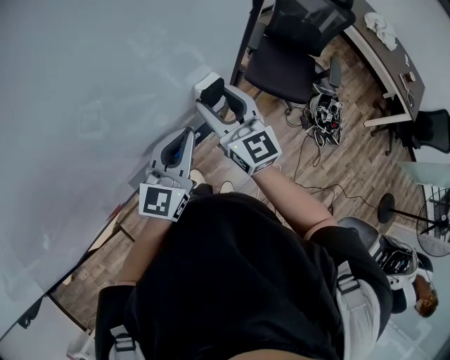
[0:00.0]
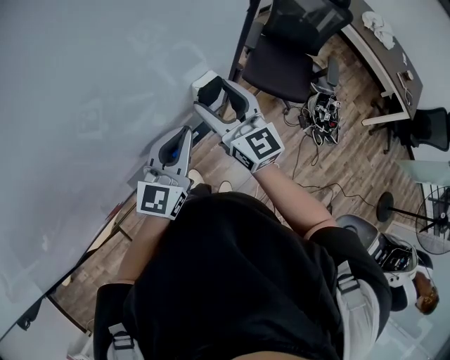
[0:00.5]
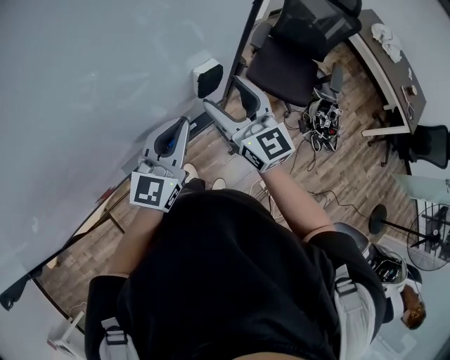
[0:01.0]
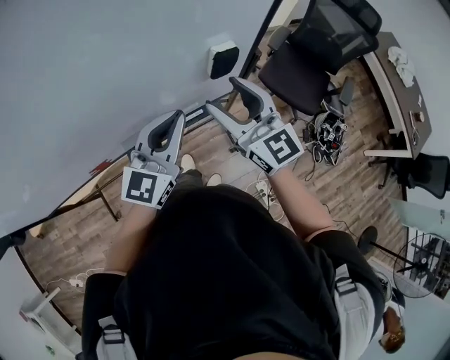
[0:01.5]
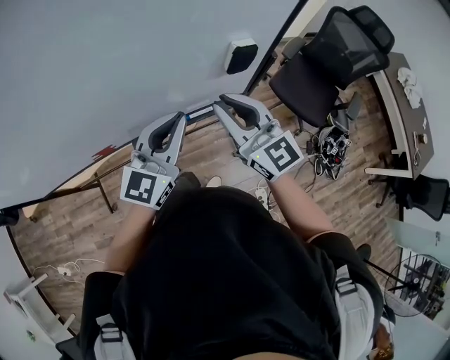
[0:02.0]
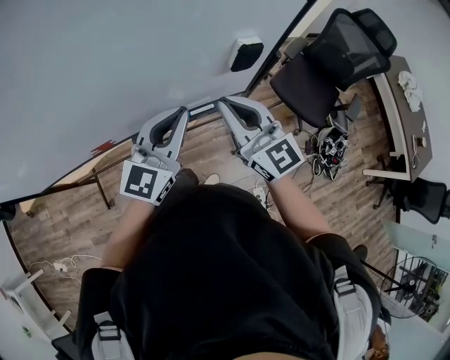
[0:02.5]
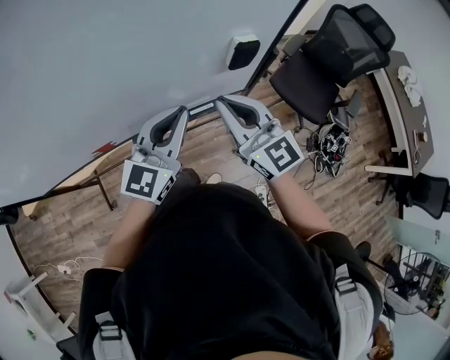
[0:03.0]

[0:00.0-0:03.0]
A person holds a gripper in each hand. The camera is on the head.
0.0 to 1.5 s: The grippers both shift backward by approximately 10 cm.
1.5 to 3.0 s: The right gripper shifts by about 5 cm, and closes its fingers.

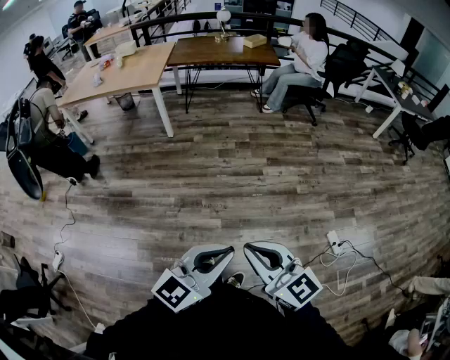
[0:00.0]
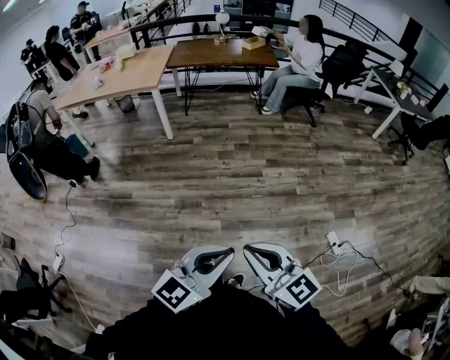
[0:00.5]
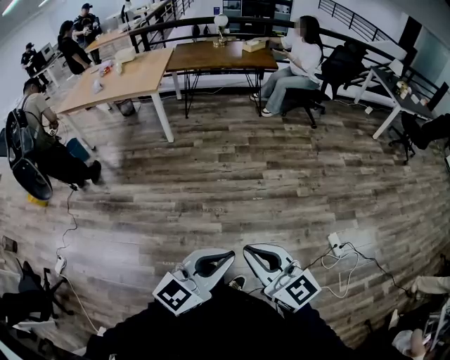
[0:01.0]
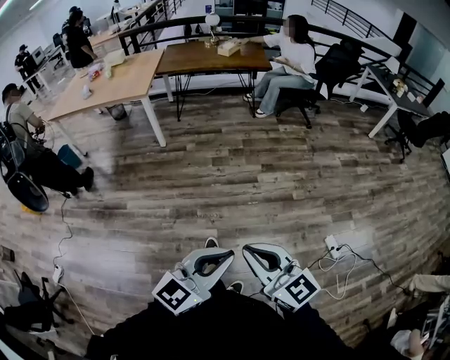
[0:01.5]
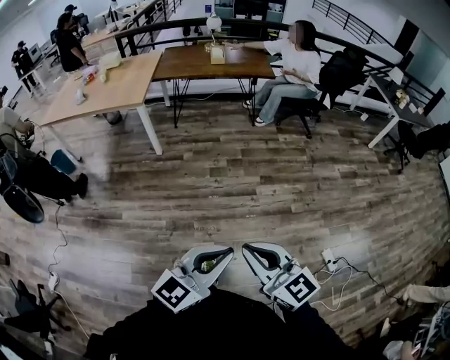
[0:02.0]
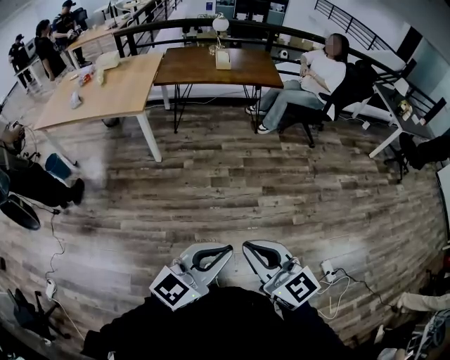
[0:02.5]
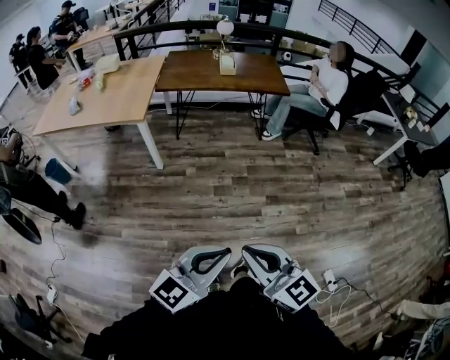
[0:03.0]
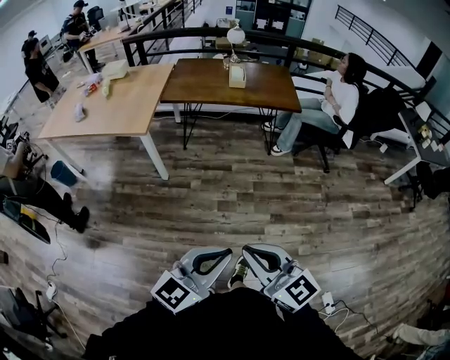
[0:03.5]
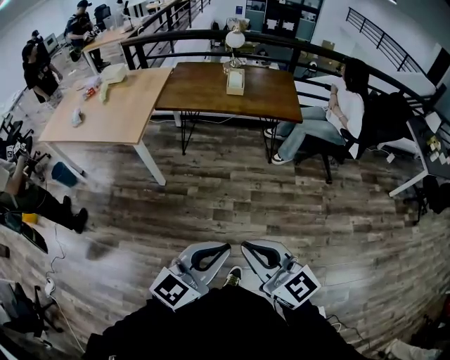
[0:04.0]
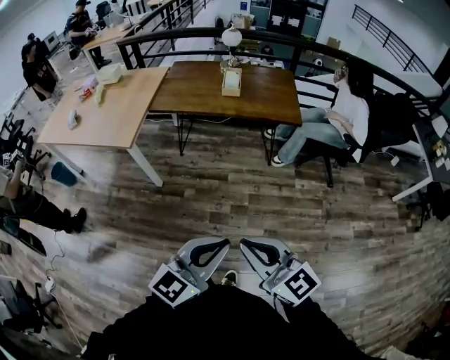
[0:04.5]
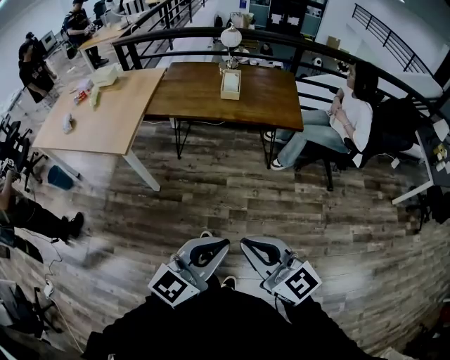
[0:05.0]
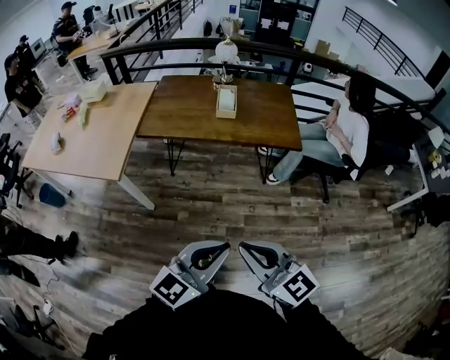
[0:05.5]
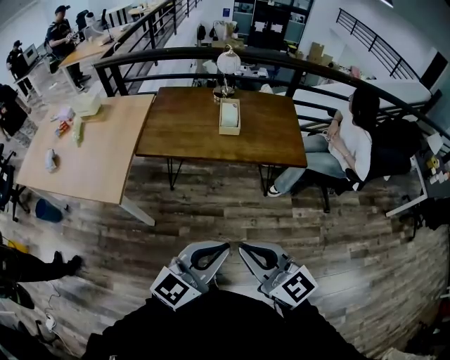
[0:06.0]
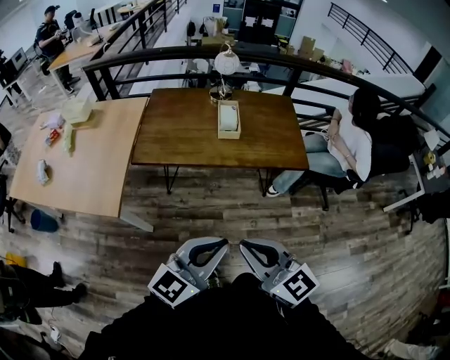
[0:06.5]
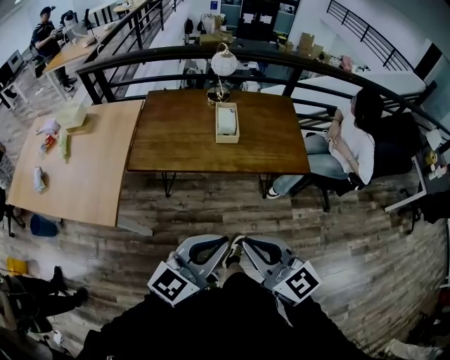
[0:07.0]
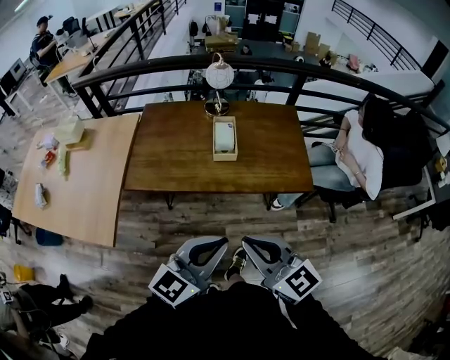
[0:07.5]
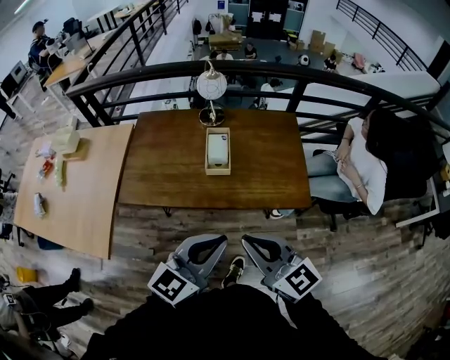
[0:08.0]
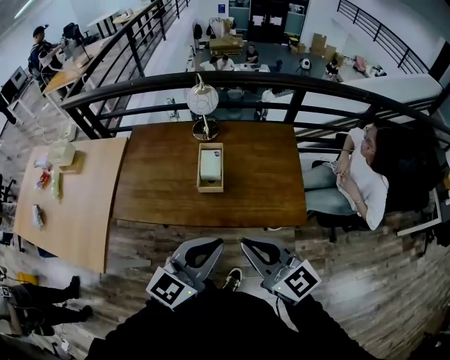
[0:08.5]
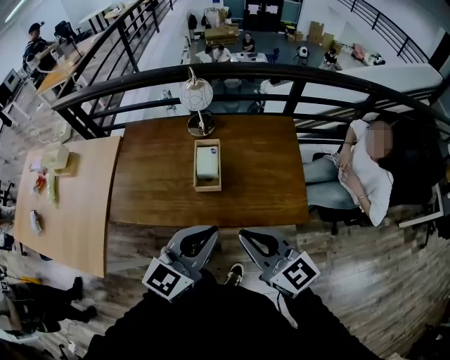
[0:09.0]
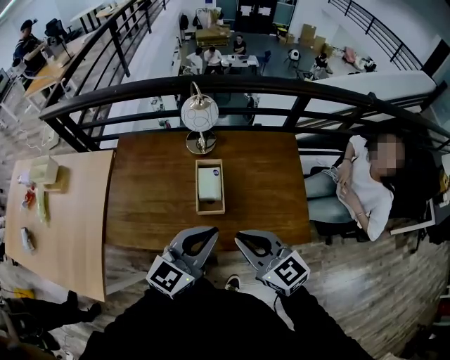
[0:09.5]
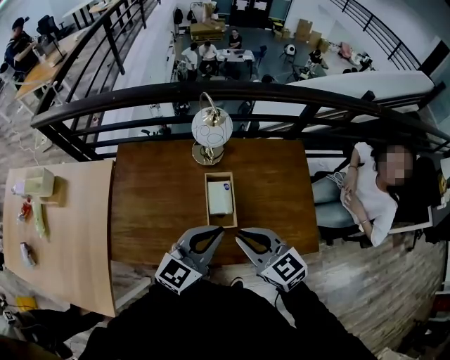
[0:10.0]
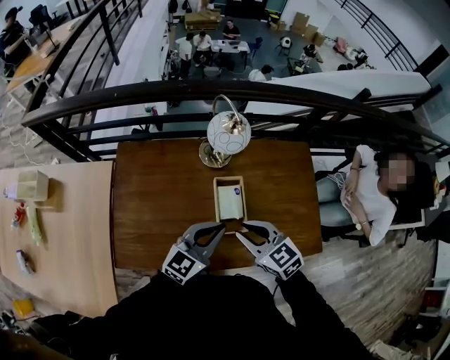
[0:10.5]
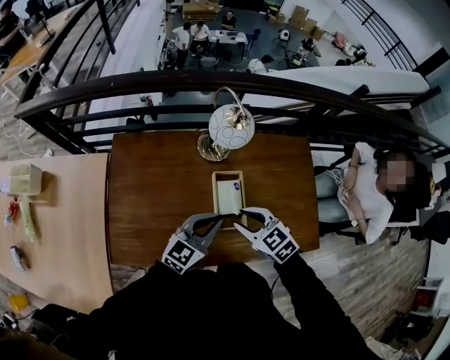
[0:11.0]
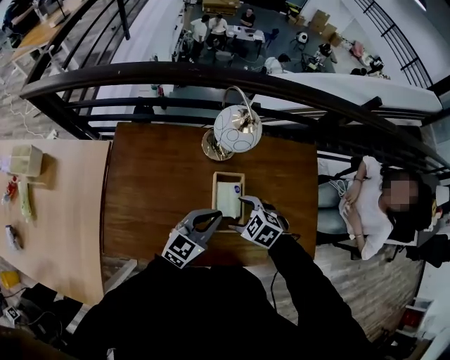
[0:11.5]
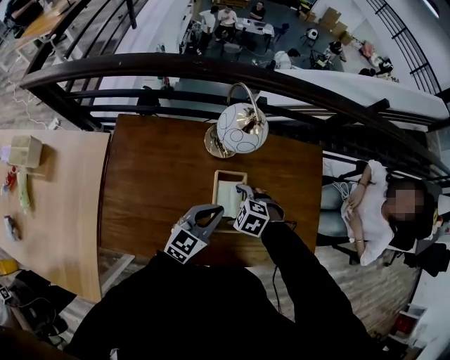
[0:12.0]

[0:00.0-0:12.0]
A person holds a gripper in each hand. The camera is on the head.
0.0 to 2.0 s: Both grippers travel together forward, about 20 cm.
2.0 to 4.0 s: Both grippers are carried forward, some 40 cm.
4.0 to 6.0 s: Both grippers move forward, roughly 35 cm.
6.0 to 8.0 s: Both grippers move forward, about 30 cm.
8.0 to 10.0 s: Both grippers travel together forward, about 30 cm.
10.0 to 12.0 s: The two grippers go some 25 cm downward and forward. The right gripper angles its fingers downward, by some 50 degrees, and opens.

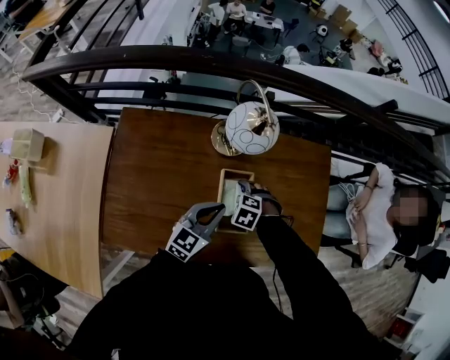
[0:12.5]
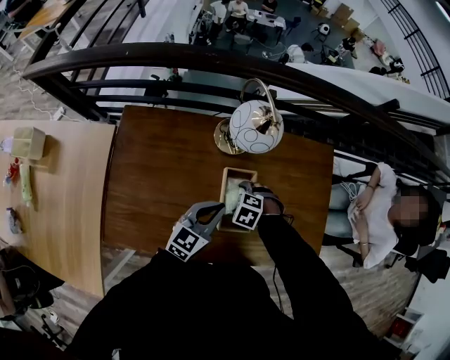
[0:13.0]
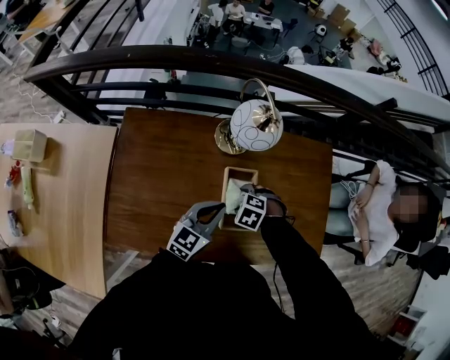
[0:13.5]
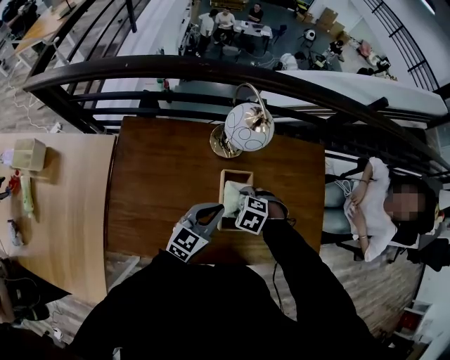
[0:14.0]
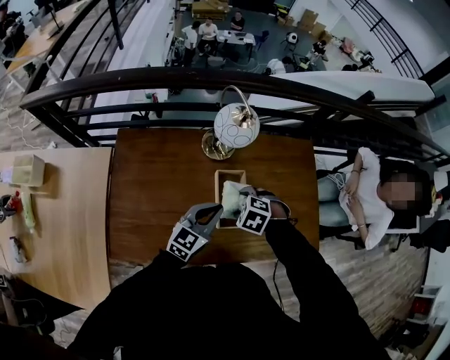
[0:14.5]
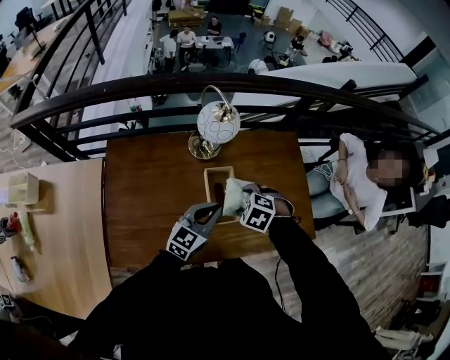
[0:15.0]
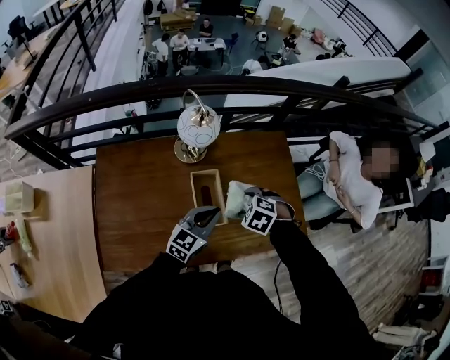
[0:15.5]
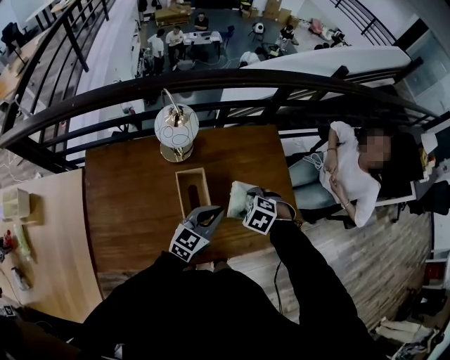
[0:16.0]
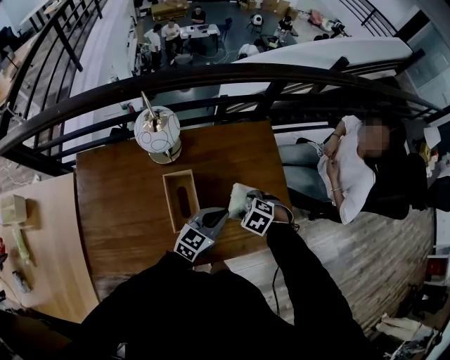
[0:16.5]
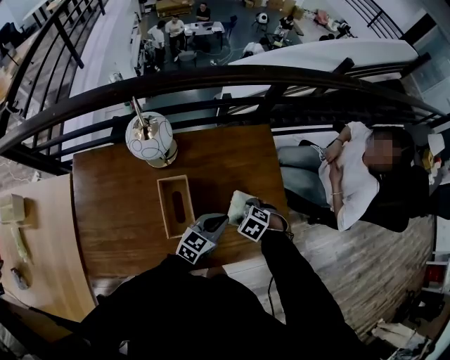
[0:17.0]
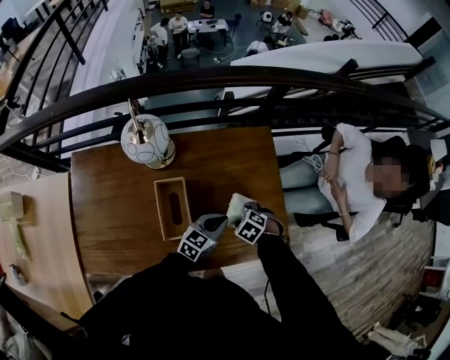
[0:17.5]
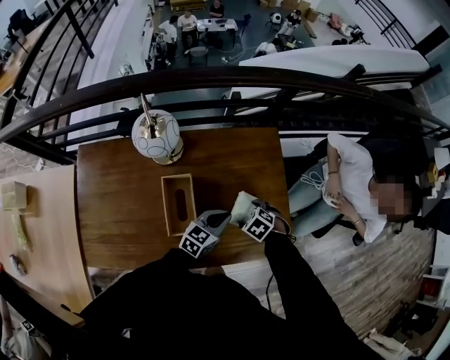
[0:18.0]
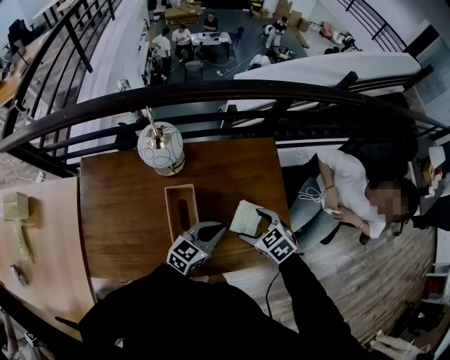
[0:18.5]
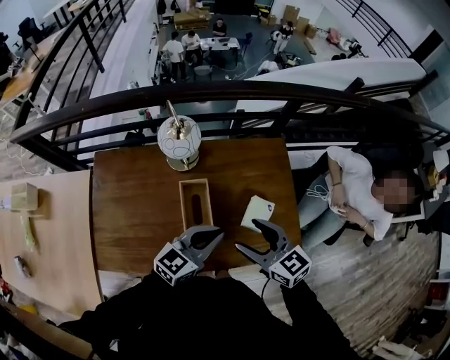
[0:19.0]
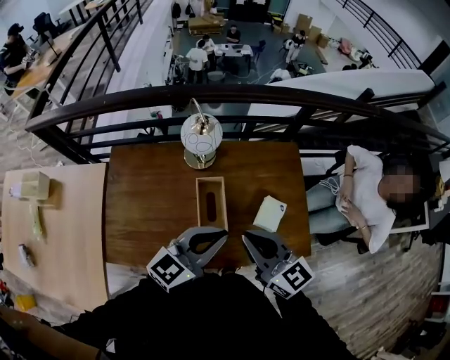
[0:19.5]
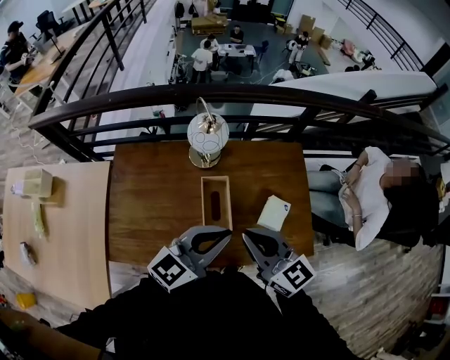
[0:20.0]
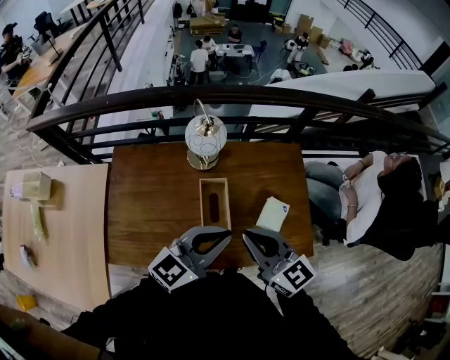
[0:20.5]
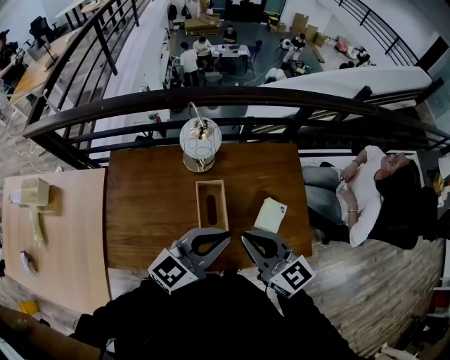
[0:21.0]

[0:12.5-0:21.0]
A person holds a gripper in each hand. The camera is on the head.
12.5 to 14.5 s: The right gripper travels upward by some 10 cm, and closes up.
14.5 to 16.5 s: The right gripper shifts by some 20 cm, while the left gripper shifts by about 20 cm.
16.5 to 19.0 s: The right gripper is displaced upward by roughly 20 cm, and points its fingers approximately 60 degrees further upward; the left gripper travels upward by approximately 10 cm.
19.0 to 21.0 s: The left gripper is displaced upward by some 10 cm; the right gripper goes some 10 cm upward and to the left, and closes its fingers.

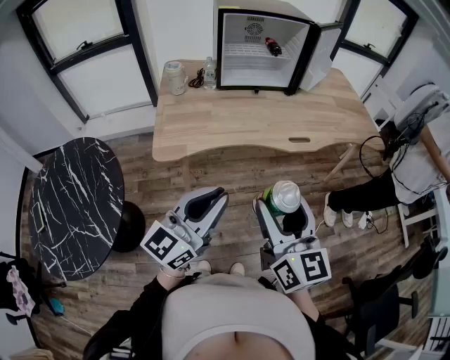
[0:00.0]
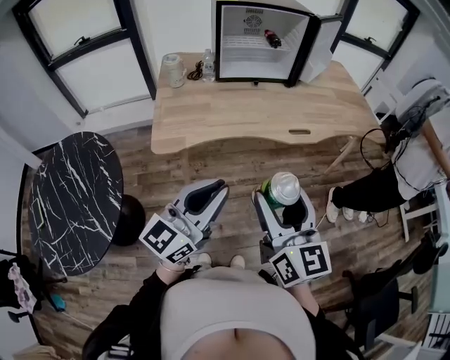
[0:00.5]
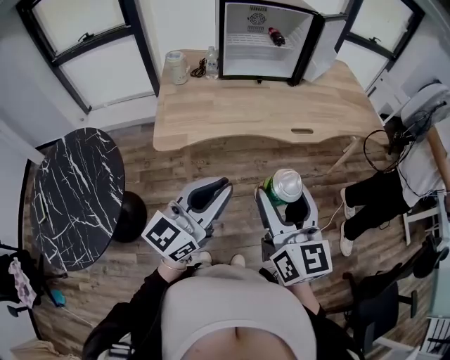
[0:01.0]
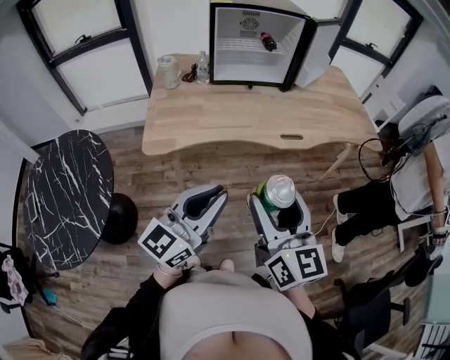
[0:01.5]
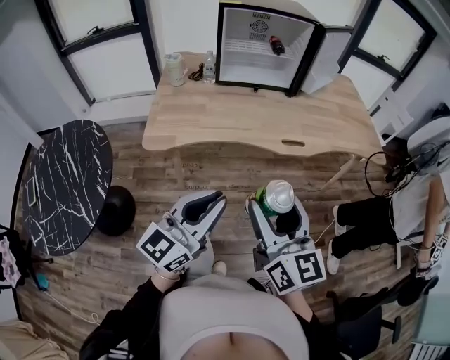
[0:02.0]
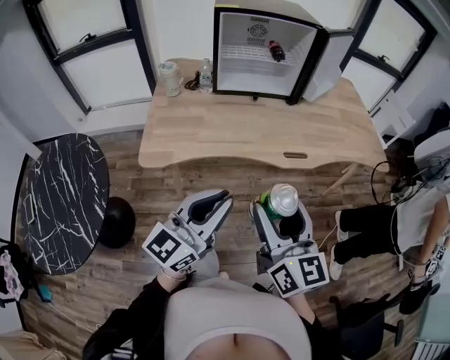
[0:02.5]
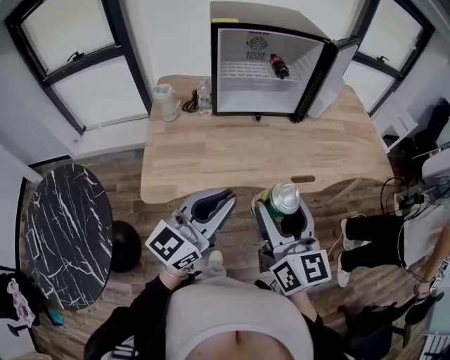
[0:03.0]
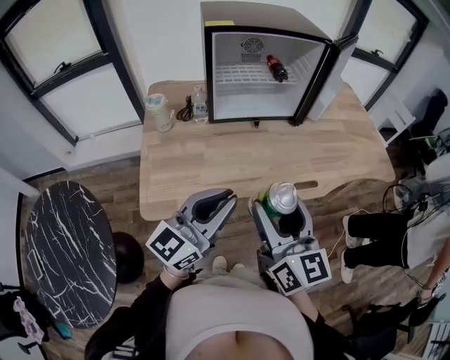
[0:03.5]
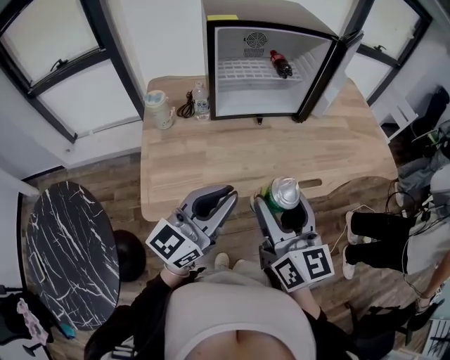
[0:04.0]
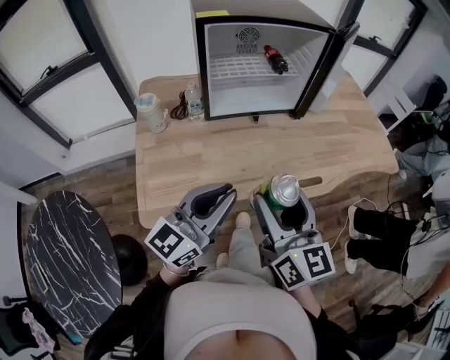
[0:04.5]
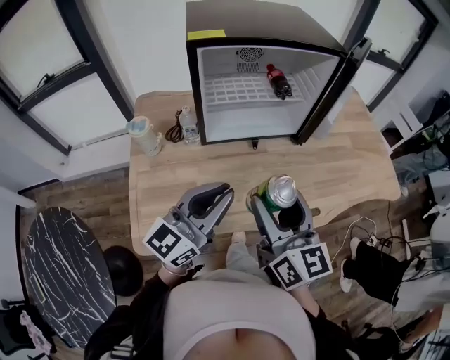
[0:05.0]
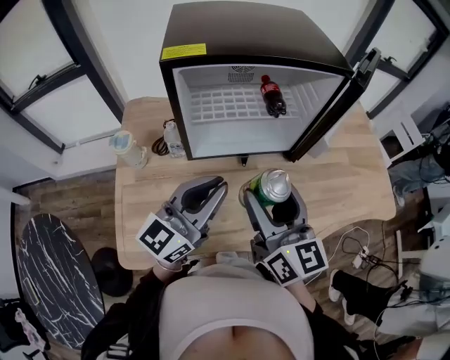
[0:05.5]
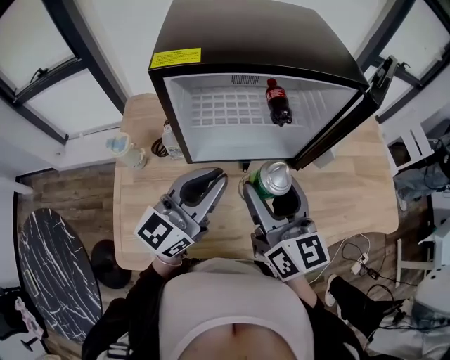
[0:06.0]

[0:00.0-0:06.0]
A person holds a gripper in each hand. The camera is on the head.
0.0 to 2.0 s: Both grippers travel together to the right, roughly 5 cm.
2.0 to 4.0 s: Both grippers travel together forward and to the left, about 25 cm.
4.0 to 6.0 s: The grippers both shift forward by some 30 cm.
